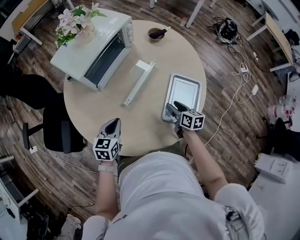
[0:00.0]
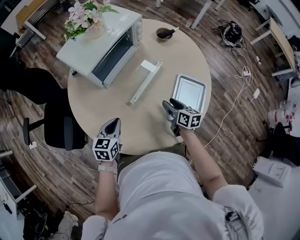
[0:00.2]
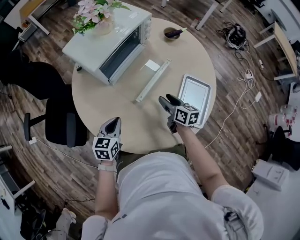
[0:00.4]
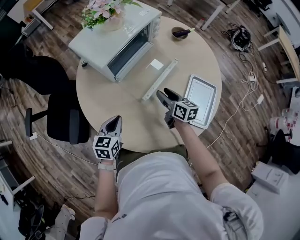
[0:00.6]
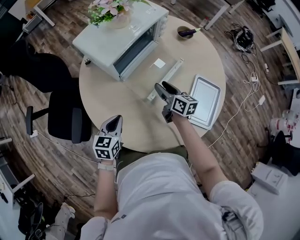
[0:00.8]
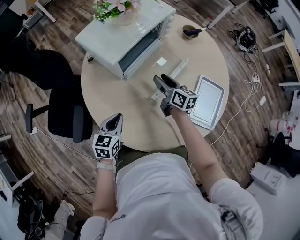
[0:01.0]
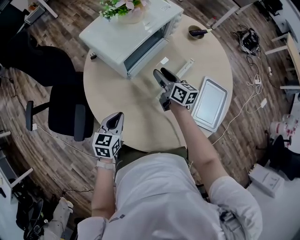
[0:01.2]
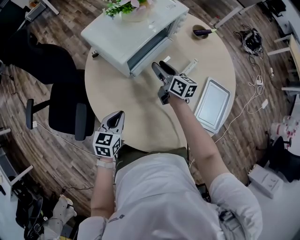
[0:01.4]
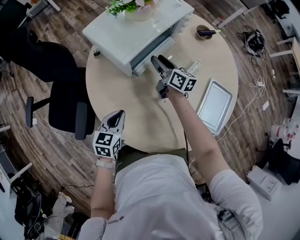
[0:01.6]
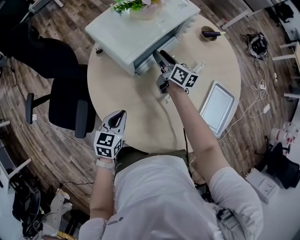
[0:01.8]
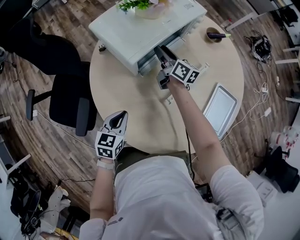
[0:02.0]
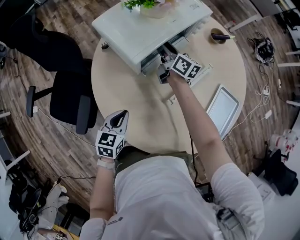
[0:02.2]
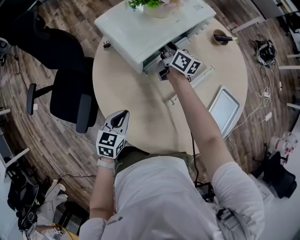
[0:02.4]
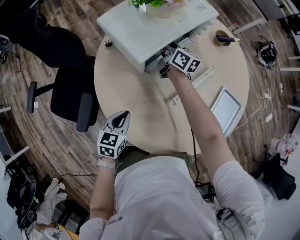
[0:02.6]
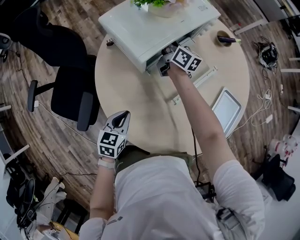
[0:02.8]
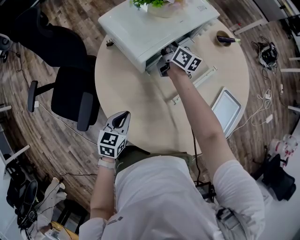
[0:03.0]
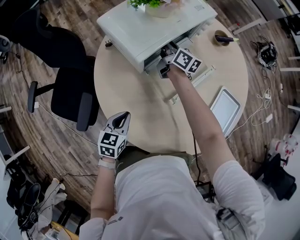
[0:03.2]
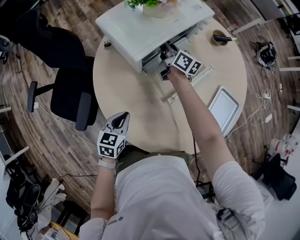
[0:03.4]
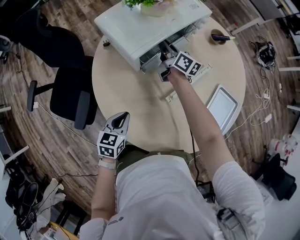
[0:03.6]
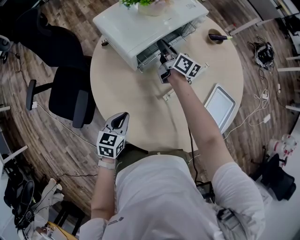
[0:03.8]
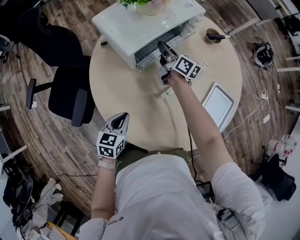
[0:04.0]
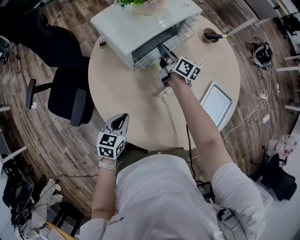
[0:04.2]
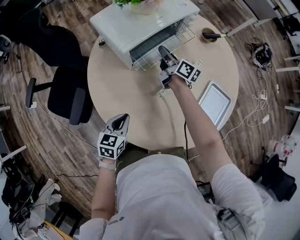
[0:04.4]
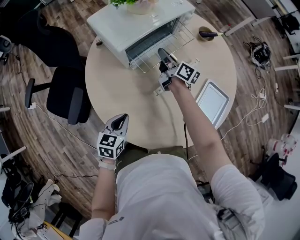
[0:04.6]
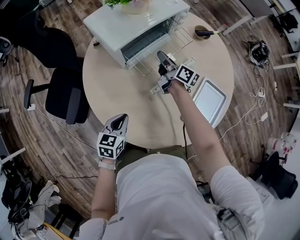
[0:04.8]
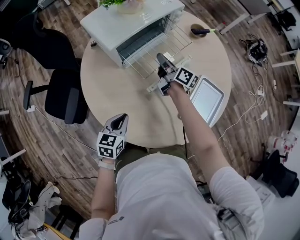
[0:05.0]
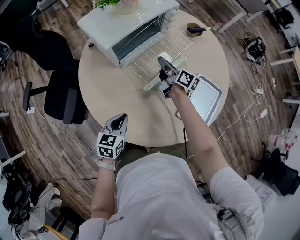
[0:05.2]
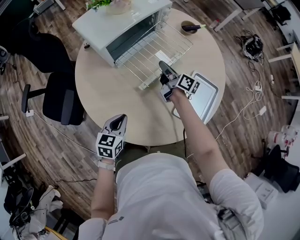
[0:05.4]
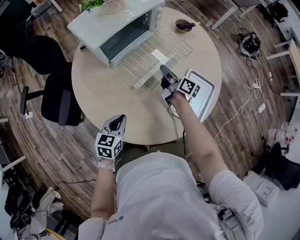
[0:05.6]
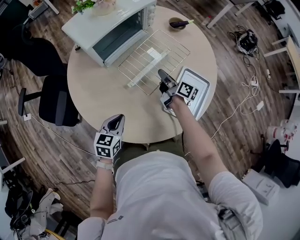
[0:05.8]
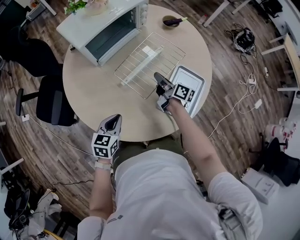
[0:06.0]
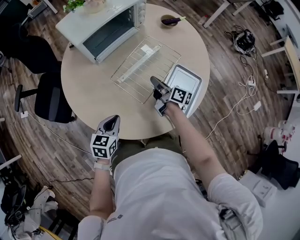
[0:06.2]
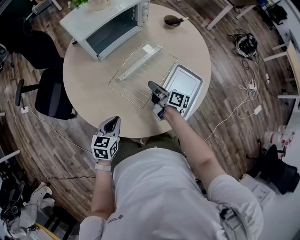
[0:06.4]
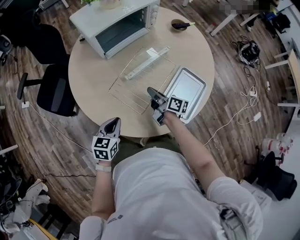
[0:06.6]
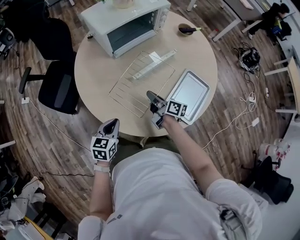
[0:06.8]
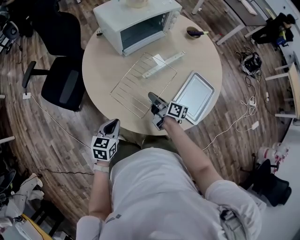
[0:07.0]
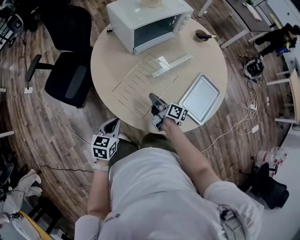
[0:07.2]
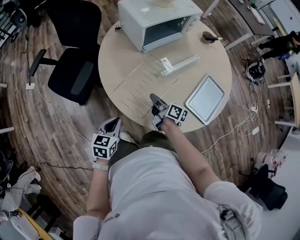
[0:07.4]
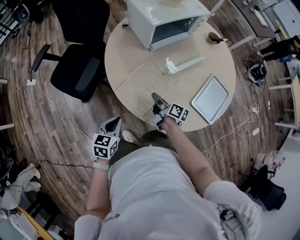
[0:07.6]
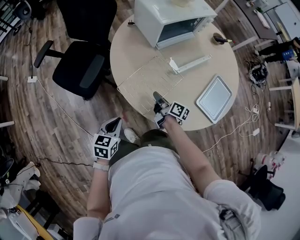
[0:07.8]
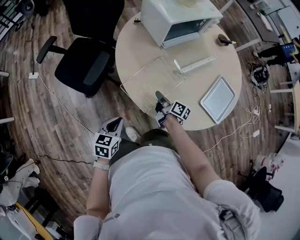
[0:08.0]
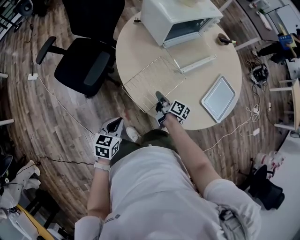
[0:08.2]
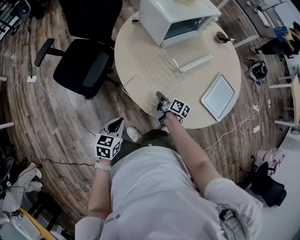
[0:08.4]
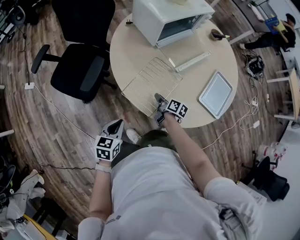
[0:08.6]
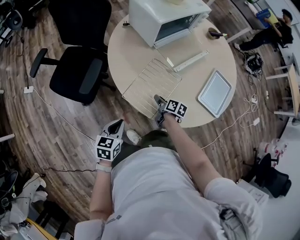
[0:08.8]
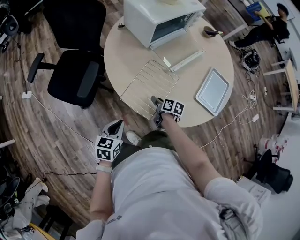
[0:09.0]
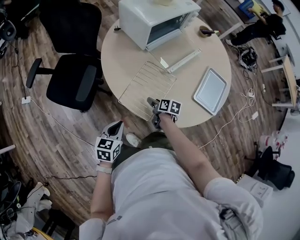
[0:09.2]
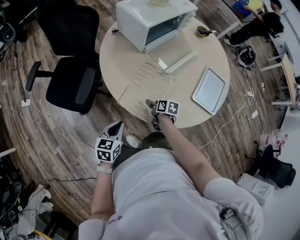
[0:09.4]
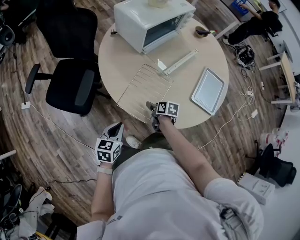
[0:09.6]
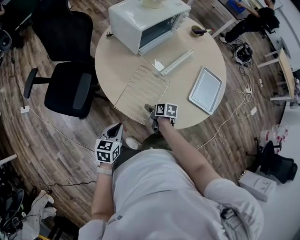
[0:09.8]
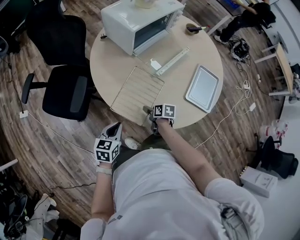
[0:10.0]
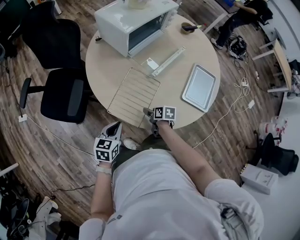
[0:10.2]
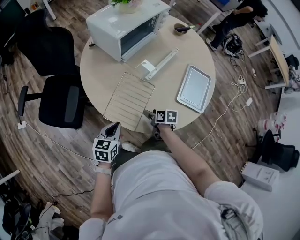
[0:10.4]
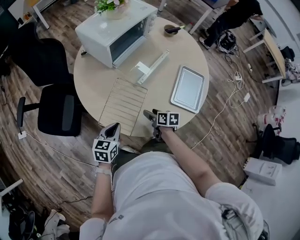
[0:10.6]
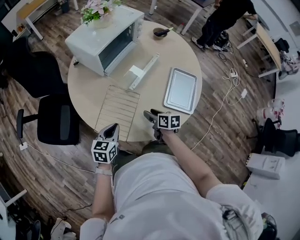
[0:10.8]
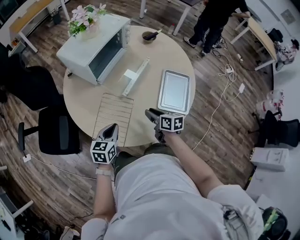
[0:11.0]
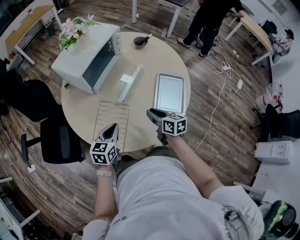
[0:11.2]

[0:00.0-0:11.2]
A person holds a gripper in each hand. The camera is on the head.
0:00.0 to 0:01.6: The right gripper goes some 35 cm to the left and forward, and changes its angle by about 20 degrees. Meanwhile the left gripper heads to the left, covering roughly 15 cm.
0:01.6 to 0:03.2: The right gripper shifts about 10 cm forward and to the left, and closes its fingers.
0:03.2 to 0:04.8: The right gripper moves backward and to the right, approximately 15 cm, while the left gripper is displaced to the right and backward by some 10 cm.
0:04.8 to 0:06.4: The right gripper heads backward and to the right, covering approximately 25 cm, while the left gripper heads to the right and backward, covering approximately 15 cm.
0:06.4 to 0:08.0: Both grippers move to the left, some 30 cm.
0:08.0 to 0:09.6: The right gripper moves downward, roughly 5 cm, points its fingers some 30 degrees further downward, and opens up.
0:09.6 to 0:11.2: The right gripper goes roughly 25 cm upward and to the right, swivels some 30 degrees, and closes, while the left gripper is displaced to the right, forward and upward by some 25 cm.

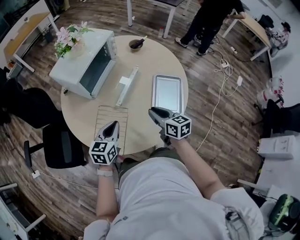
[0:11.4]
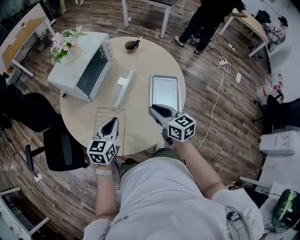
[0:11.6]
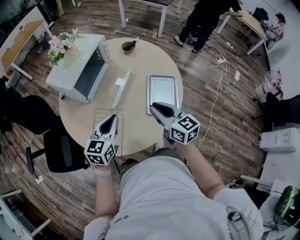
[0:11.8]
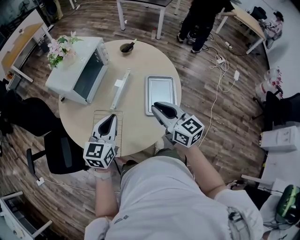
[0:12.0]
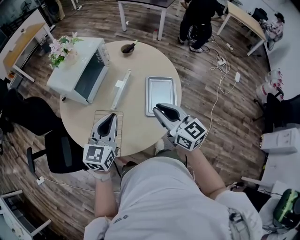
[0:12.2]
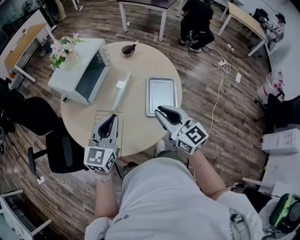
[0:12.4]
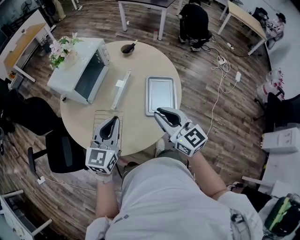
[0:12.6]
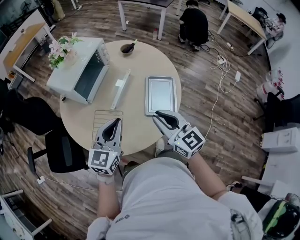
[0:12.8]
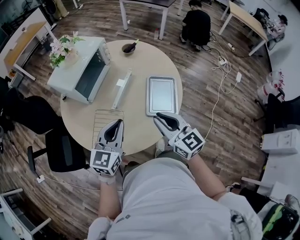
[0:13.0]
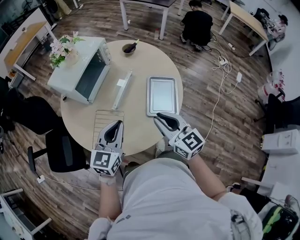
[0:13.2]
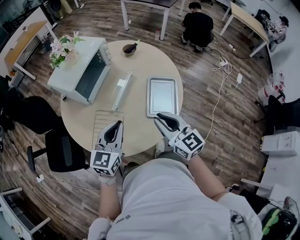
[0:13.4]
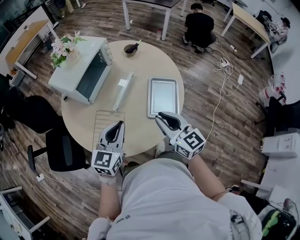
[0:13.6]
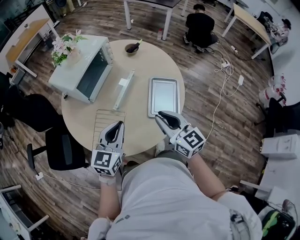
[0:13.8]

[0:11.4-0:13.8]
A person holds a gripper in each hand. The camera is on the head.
0:11.4 to 0:12.6: The left gripper moves upward and to the right, approximately 15 cm, and turns by about 20 degrees. Meanwhile the right gripper shifts roughly 15 cm upward and backward, and changes its angle by about 30 degrees.
0:12.6 to 0:13.8: The grippers stay close to where they were, moving slightly.

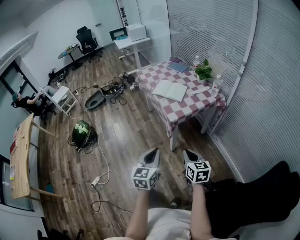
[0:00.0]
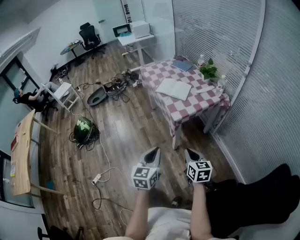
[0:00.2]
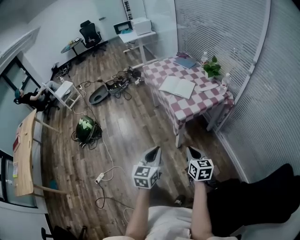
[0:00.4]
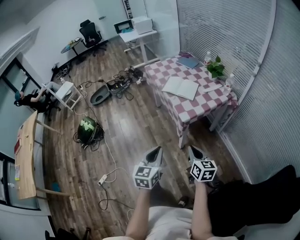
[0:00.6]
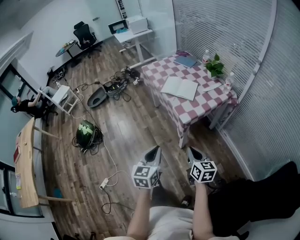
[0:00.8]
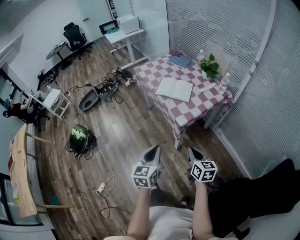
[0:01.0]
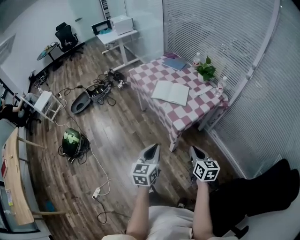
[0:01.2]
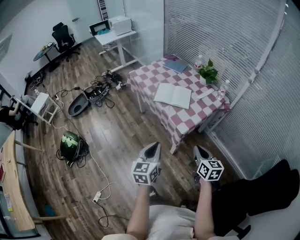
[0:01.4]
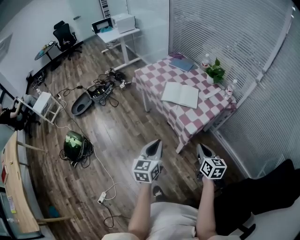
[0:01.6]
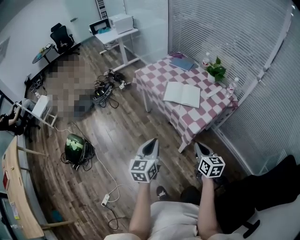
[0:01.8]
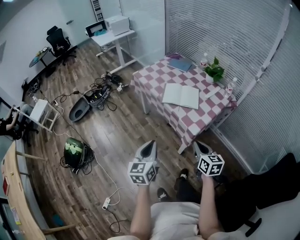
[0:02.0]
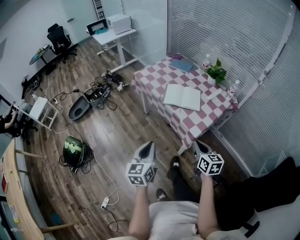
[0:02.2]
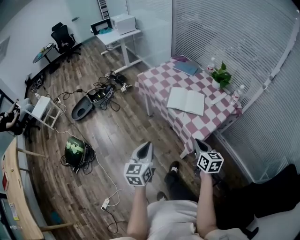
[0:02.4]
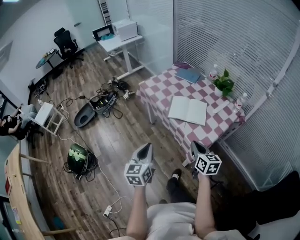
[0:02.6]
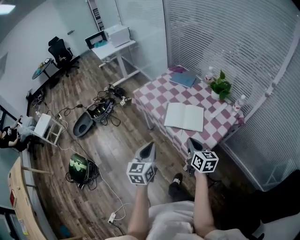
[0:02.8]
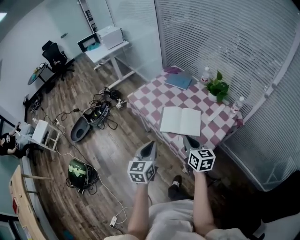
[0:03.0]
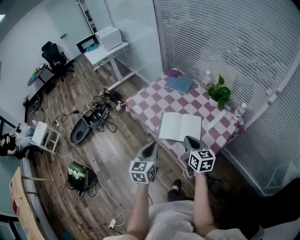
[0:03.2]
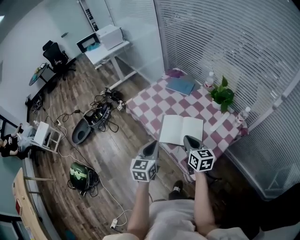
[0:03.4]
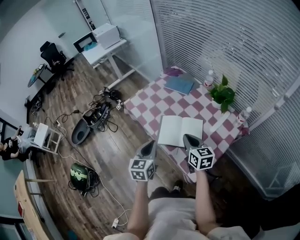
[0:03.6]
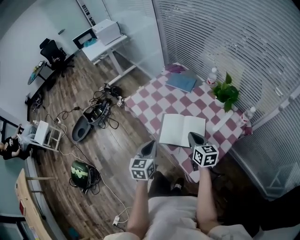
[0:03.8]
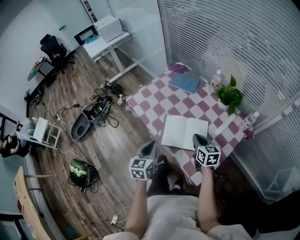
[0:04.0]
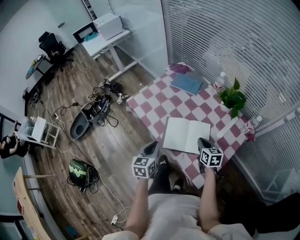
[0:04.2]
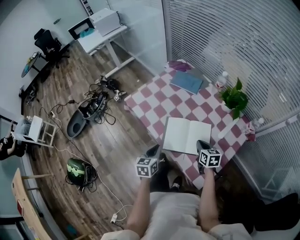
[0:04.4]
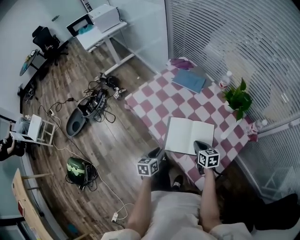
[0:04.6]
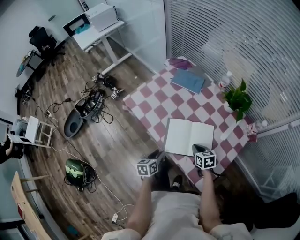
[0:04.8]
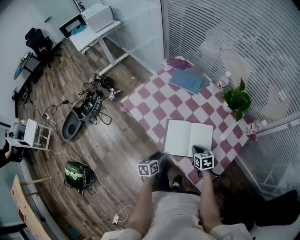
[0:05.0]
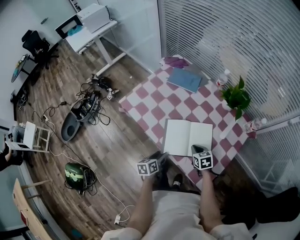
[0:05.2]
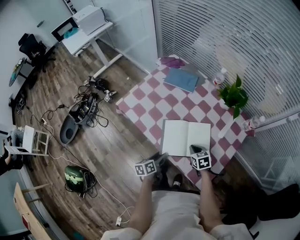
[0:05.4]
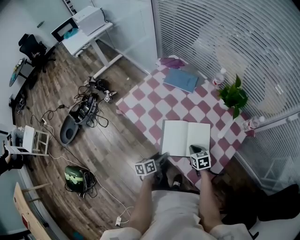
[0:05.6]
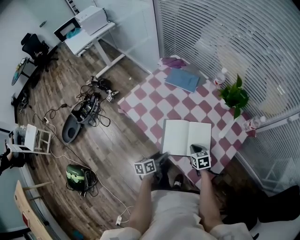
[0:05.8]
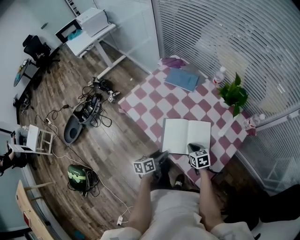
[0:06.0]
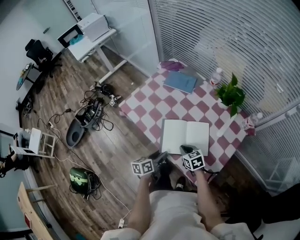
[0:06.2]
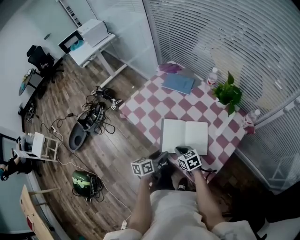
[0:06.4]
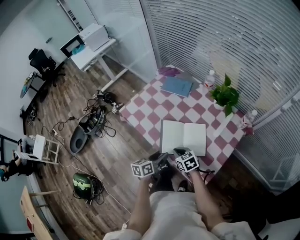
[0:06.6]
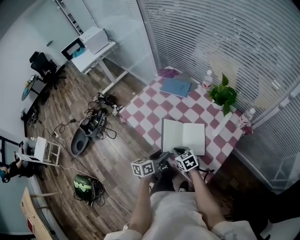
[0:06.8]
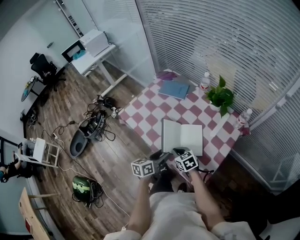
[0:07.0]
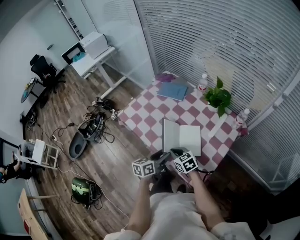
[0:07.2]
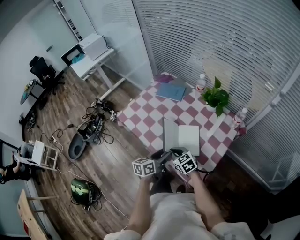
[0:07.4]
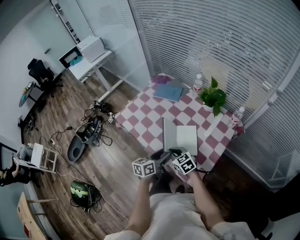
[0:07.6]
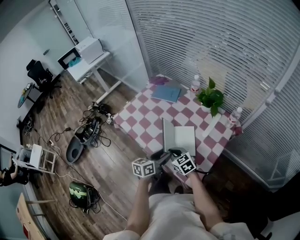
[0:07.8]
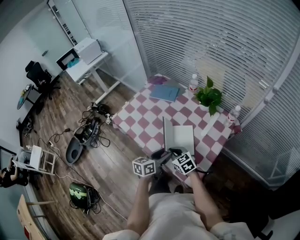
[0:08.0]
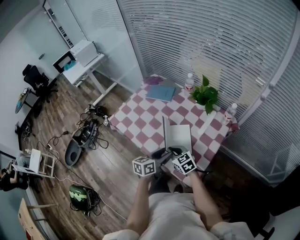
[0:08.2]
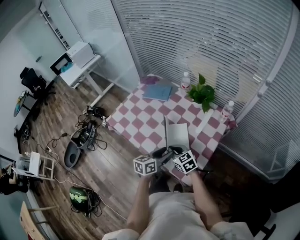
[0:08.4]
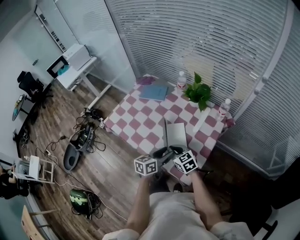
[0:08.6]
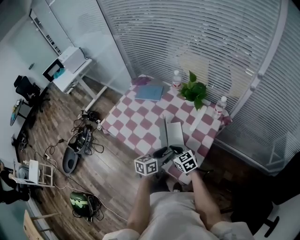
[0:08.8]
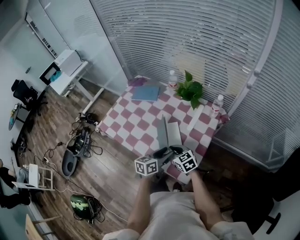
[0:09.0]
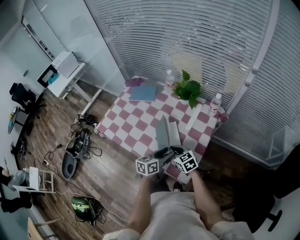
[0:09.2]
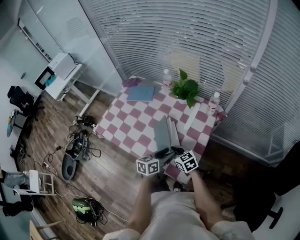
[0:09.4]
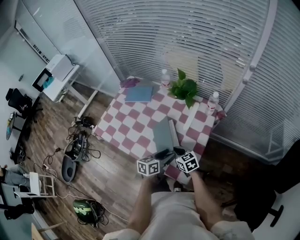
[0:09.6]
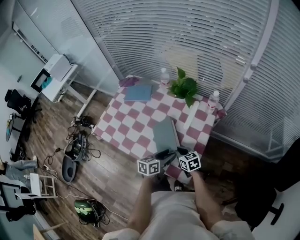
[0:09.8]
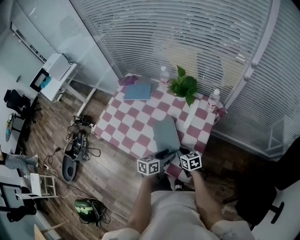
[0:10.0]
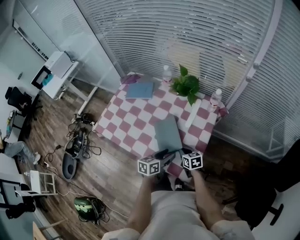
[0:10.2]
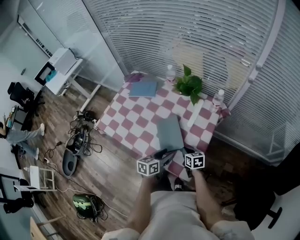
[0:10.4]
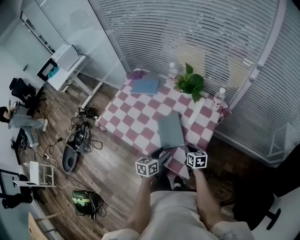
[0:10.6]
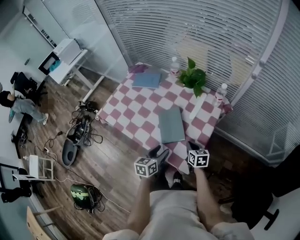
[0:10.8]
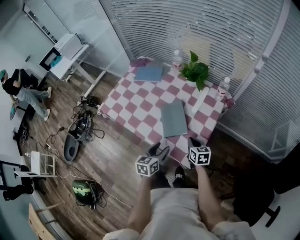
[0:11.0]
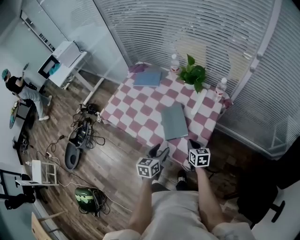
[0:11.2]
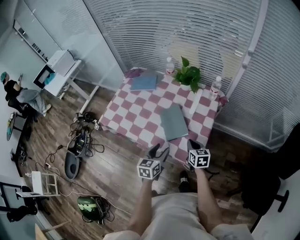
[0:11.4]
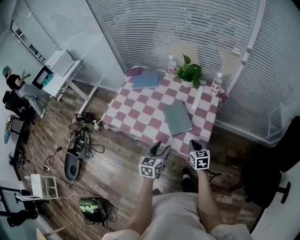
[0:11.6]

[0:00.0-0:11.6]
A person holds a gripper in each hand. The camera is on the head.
0:00.0 to 0:01.4: Both grippers travel together forward and to the left, about 20 cm.
0:01.4 to 0:02.8: Both grippers travel together forward and to the left, about 25 cm.
0:02.8 to 0:04.4: The two grippers go roughly 30 cm forward and downward. The left gripper turns by about 20 degrees. Meanwhile the right gripper changes its angle by roughly 20 degrees.
0:04.4 to 0:05.8: The grippers both shift downward by about 10 cm. The left gripper rotates approximately 30 degrees, and opens its fingers.
0:05.8 to 0:07.2: The right gripper goes approximately 10 cm upward and to the left, and changes its angle by roughly 20 degrees. Meanwhile the left gripper moves upward and to the right, about 15 cm, and rotates roughly 20 degrees.
0:07.2 to 0:08.8: The grippers both shift to the right by about 10 cm.
0:08.8 to 0:10.2: The right gripper shifts approximately 15 cm downward and to the right, and rotates approximately 30 degrees. Meanwhile the left gripper travels downward by roughly 5 cm.
0:10.2 to 0:11.6: The left gripper travels to the left, backward and upward by some 15 cm, and rotates roughly 20 degrees; the right gripper travels backward and upward by roughly 15 cm, and swivels some 20 degrees.
